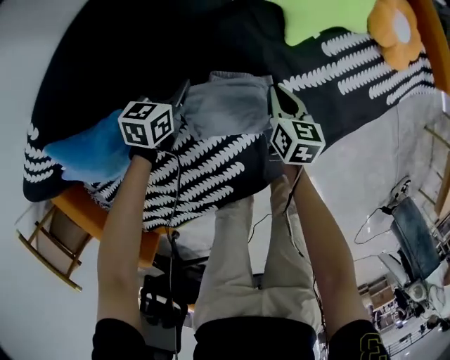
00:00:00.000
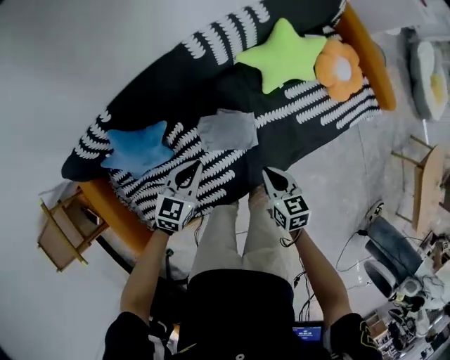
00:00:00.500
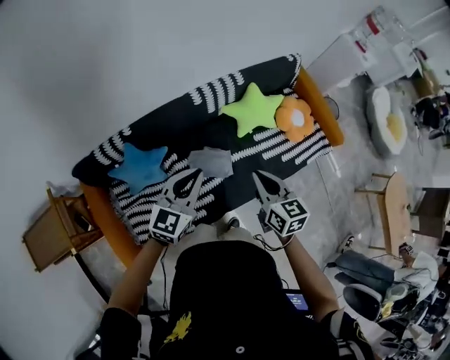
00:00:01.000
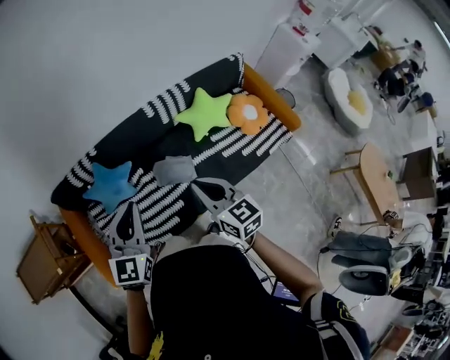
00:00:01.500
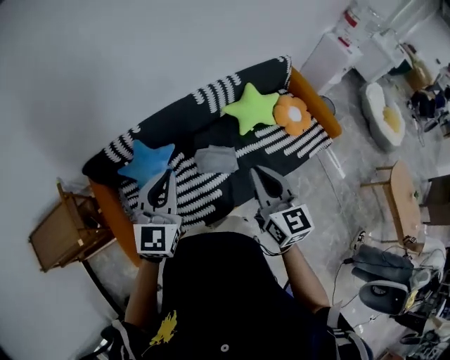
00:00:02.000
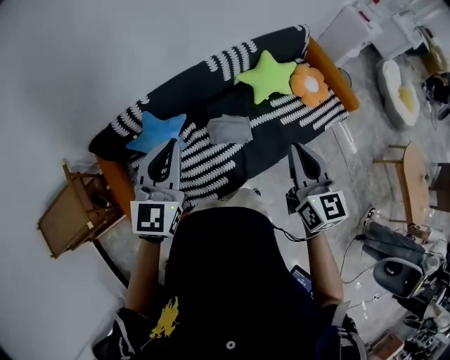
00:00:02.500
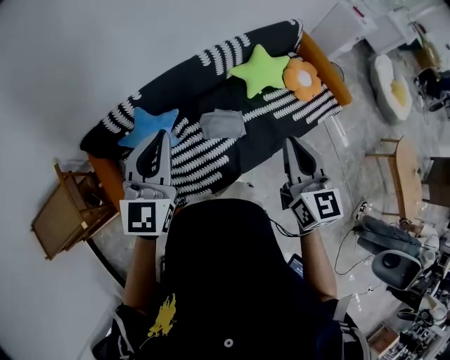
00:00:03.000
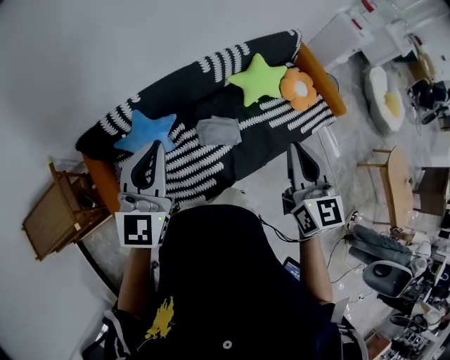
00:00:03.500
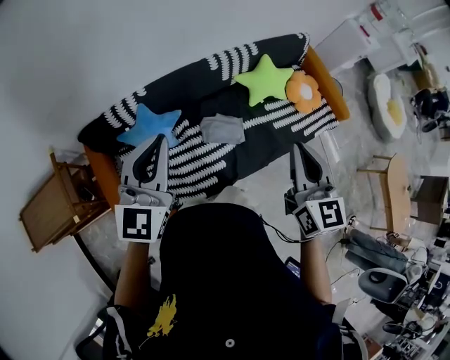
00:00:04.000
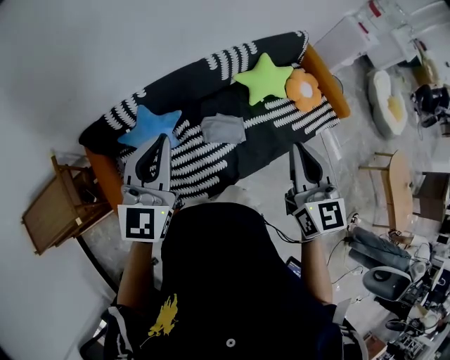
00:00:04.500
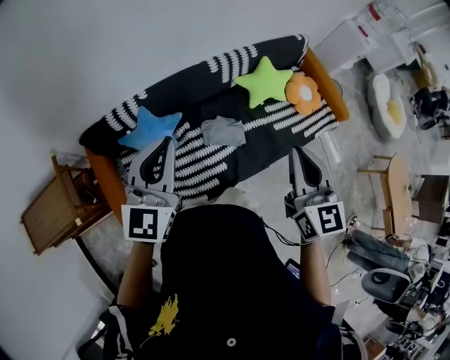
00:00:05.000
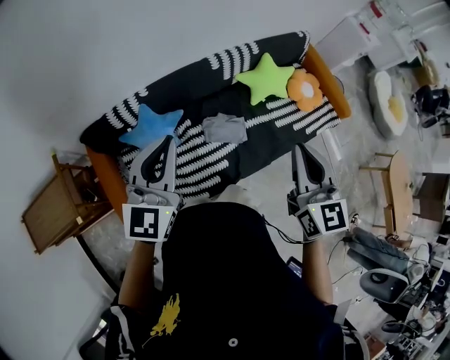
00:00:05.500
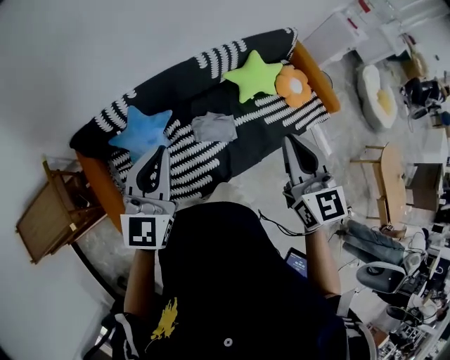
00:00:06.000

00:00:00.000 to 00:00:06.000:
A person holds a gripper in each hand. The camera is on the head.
00:00:00.000 to 00:00:02.000: The grippers both shift upward by about 80 cm. The right gripper tilts its fingers roughly 40 degrees upward. Meanwhile the left gripper tips its fingers upward by some 40 degrees.
00:00:02.000 to 00:00:04.000: The left gripper travels to the left by roughly 10 cm.
00:00:04.000 to 00:00:06.000: The grippers stay close to where they were, moving slightly.

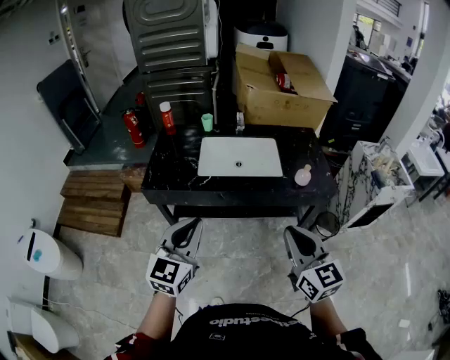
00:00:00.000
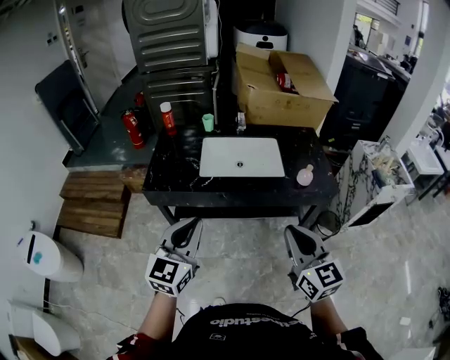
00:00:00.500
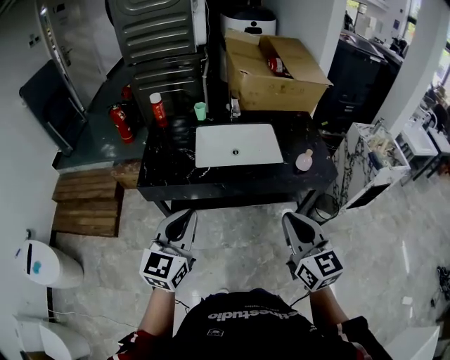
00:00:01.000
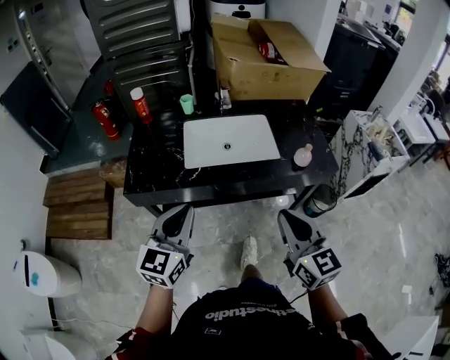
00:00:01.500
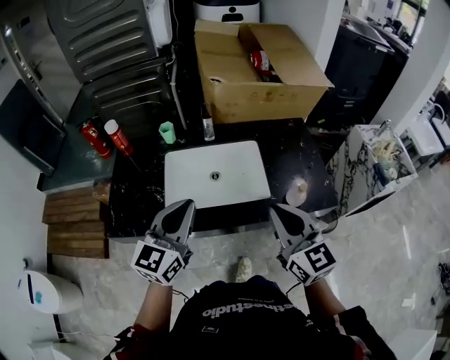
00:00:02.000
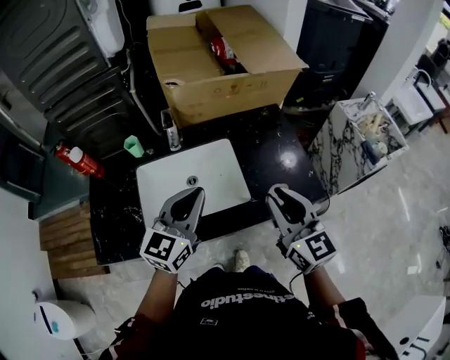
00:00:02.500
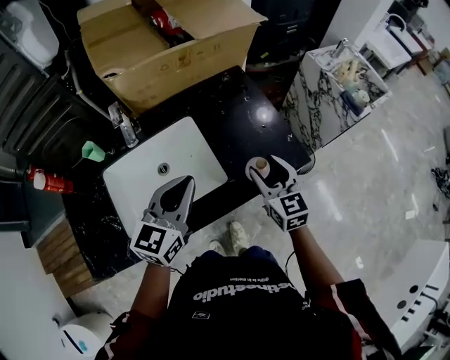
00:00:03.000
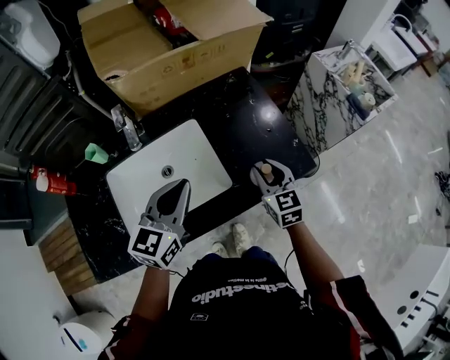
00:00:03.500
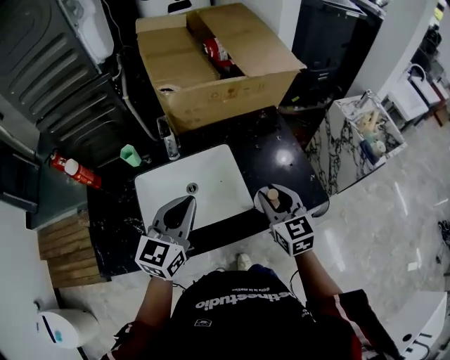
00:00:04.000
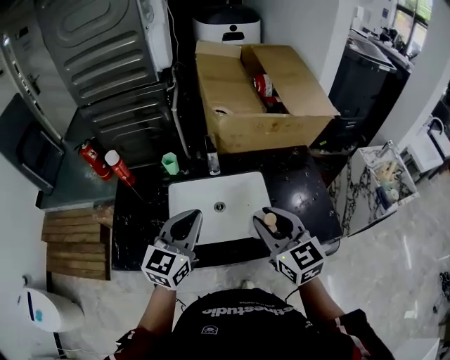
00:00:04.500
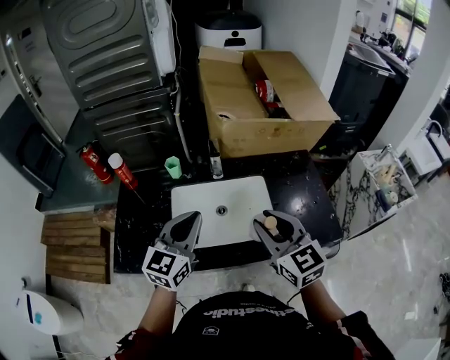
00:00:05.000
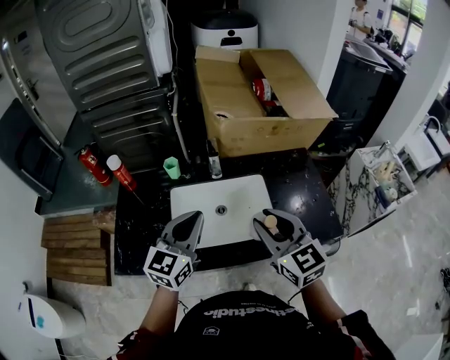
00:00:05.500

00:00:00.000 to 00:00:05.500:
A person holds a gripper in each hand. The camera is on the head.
00:00:00.000 to 00:00:02.000: The grippers both shift forward by roughly 30 cm.
00:00:02.000 to 00:00:03.500: The right gripper goes roughly 30 cm downward, forward and to the right, turns by approximately 30 degrees, and opens its fingers. Meanwhile the left gripper moves forward, to the right and downward, approximately 25 cm, and turns by roughly 20 degrees.
00:00:03.500 to 00:00:05.500: The left gripper travels to the left and upward by some 20 cm, and changes its angle by approximately 20 degrees, while the right gripper goes about 30 cm to the left and upward, and changes its angle by roughly 30 degrees.

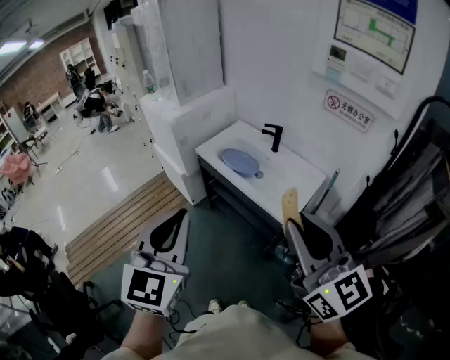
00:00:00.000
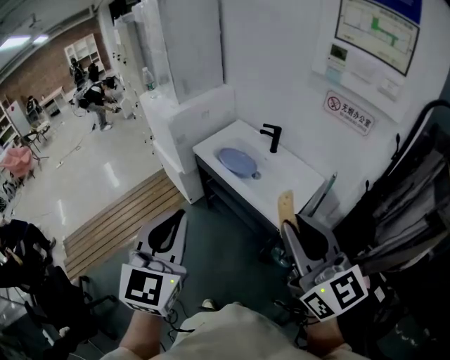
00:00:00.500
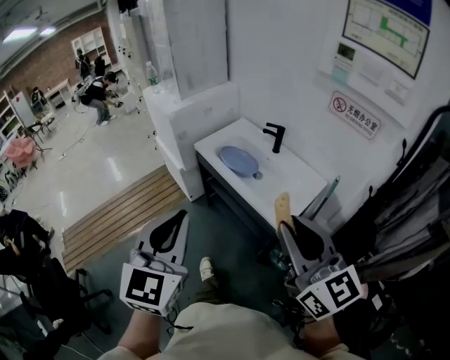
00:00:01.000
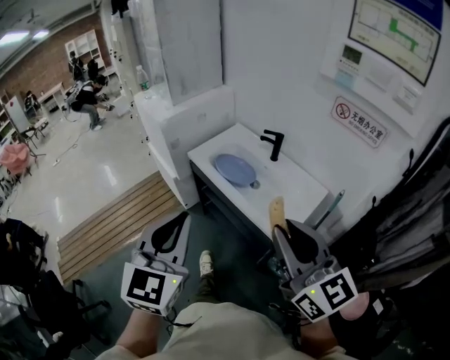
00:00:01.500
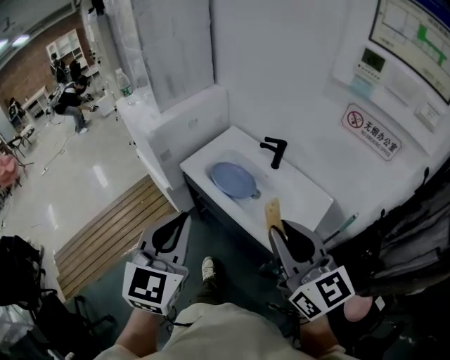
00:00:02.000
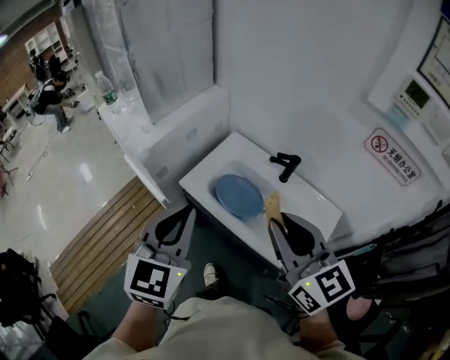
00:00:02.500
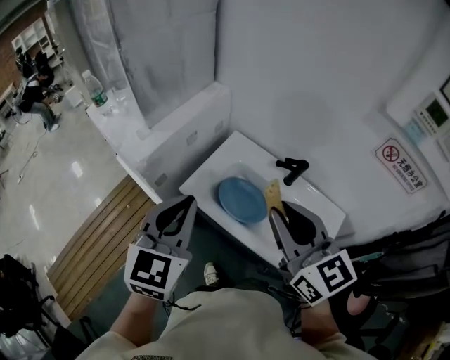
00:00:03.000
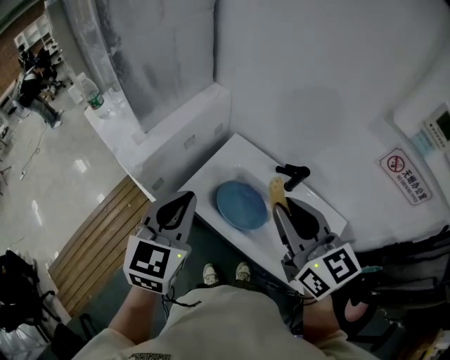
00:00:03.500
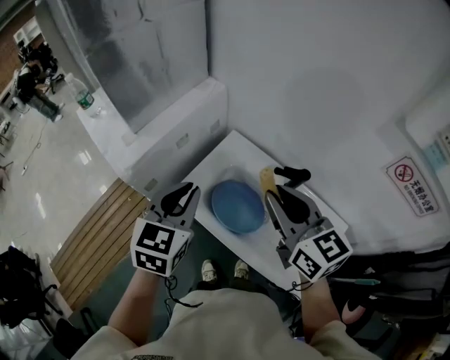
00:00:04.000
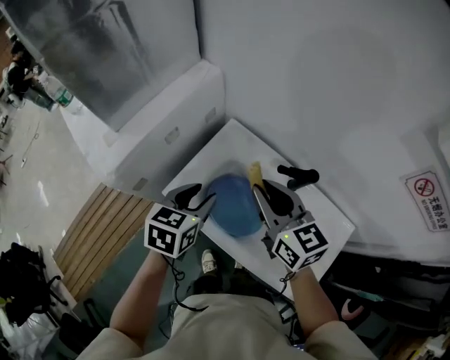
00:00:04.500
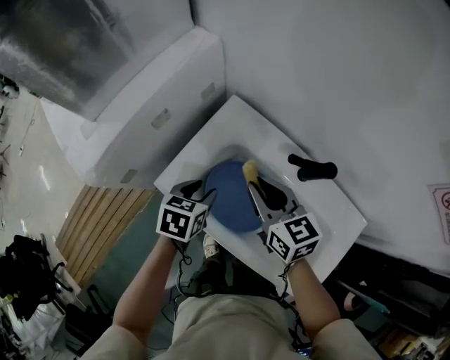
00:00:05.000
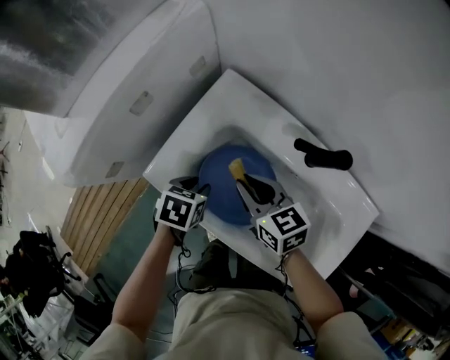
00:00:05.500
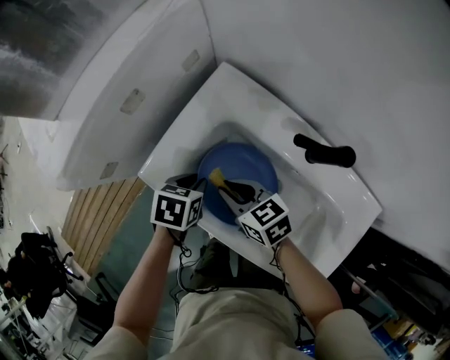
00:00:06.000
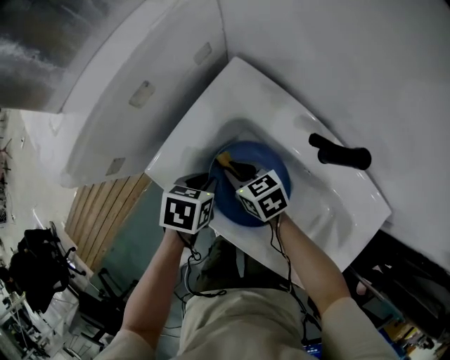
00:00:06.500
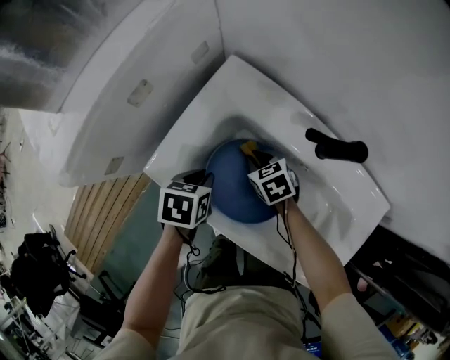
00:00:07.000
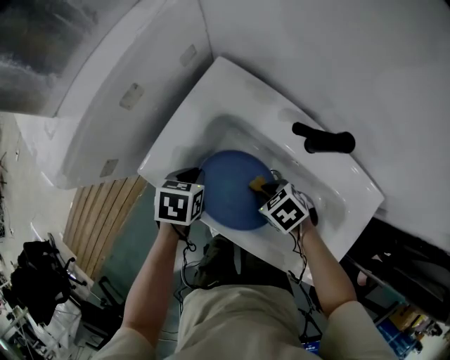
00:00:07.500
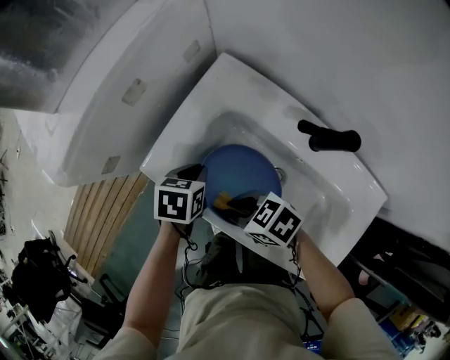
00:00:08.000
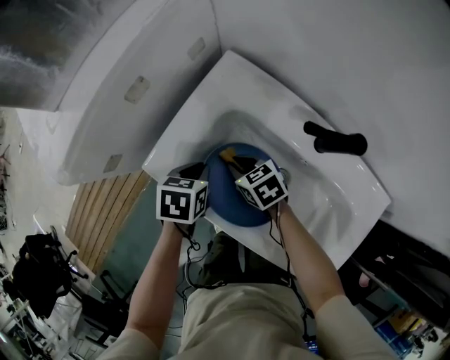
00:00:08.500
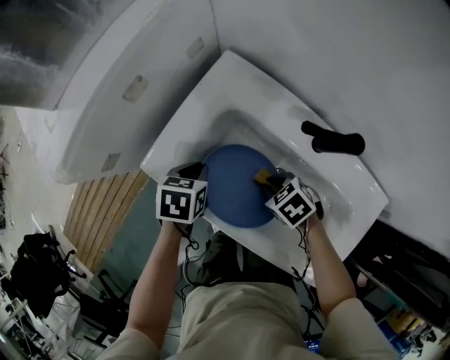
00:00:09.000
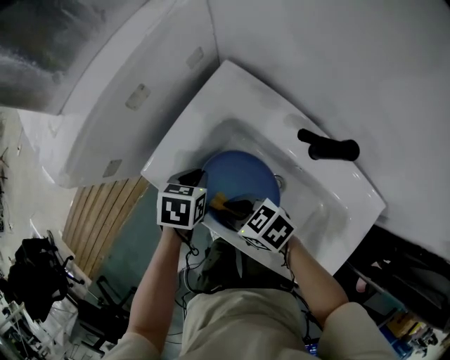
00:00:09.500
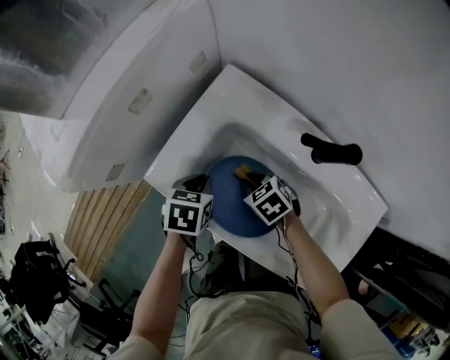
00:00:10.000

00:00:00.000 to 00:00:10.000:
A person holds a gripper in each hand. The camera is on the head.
00:00:00.000 to 00:00:02.000: The two grippers go roughly 25 cm forward.
00:00:02.000 to 00:00:04.000: The two grippers go some 35 cm forward.
00:00:04.000 to 00:00:06.000: The grippers both shift downward by about 35 cm. The left gripper tips its fingers downward by roughly 40 degrees, and opens and closes again. The right gripper rotates some 40 degrees.
00:00:06.000 to 00:00:08.000: The right gripper moves some 10 cm downward and comes back, and rotates about 30 degrees.
00:00:08.000 to 00:00:10.000: The right gripper moves up and down over some 10 cm, changing direction 2 times, and swivels about 30 degrees.

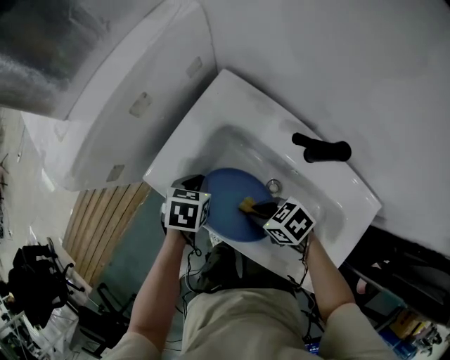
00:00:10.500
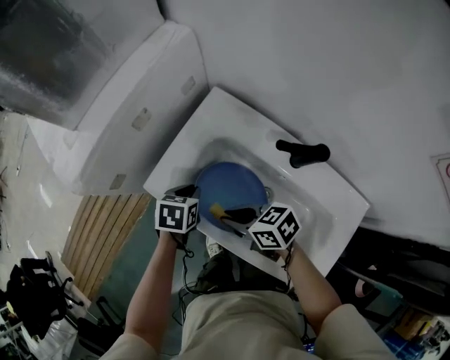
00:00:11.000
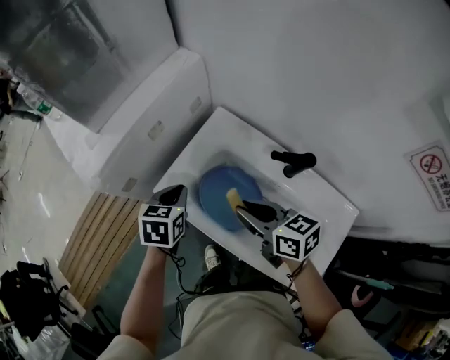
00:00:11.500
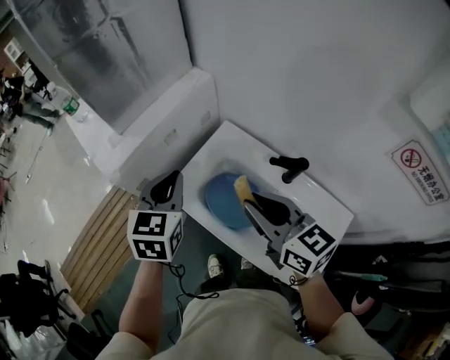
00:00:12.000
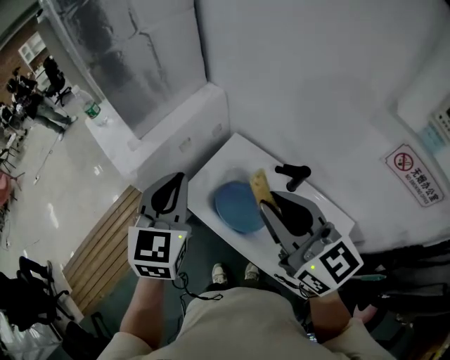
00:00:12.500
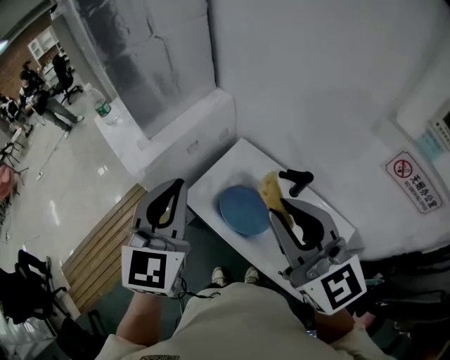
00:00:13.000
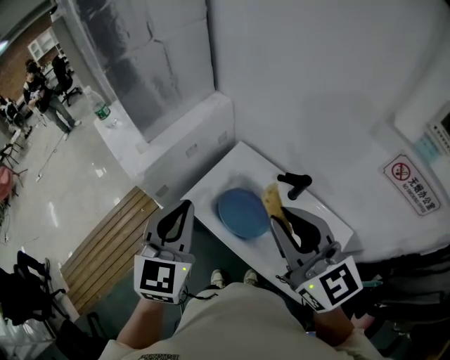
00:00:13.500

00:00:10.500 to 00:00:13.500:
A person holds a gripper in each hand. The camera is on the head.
00:00:10.500 to 00:00:12.000: Both grippers move upward, roughly 30 cm. The left gripper points its fingers about 30 degrees further upward, while the right gripper points its fingers approximately 40 degrees further upward.
00:00:12.000 to 00:00:13.500: The two grippers go some 15 cm upward and backward. The right gripper changes its angle by some 20 degrees.

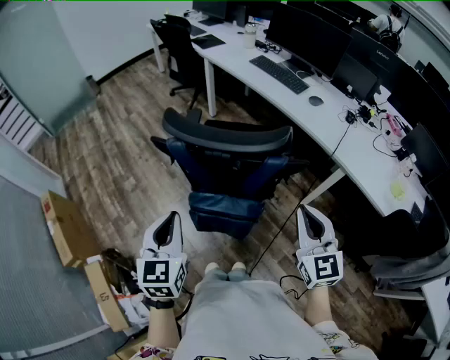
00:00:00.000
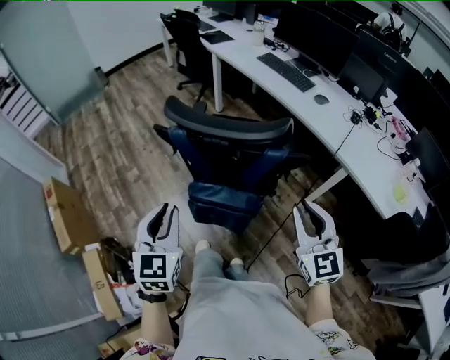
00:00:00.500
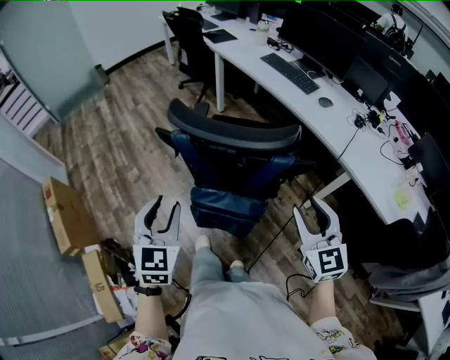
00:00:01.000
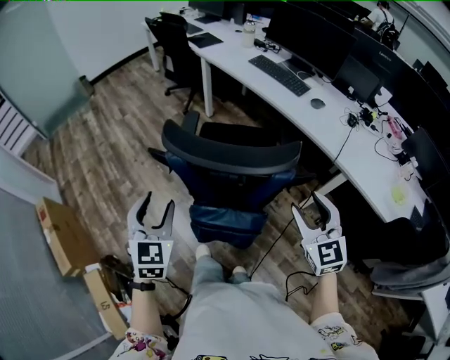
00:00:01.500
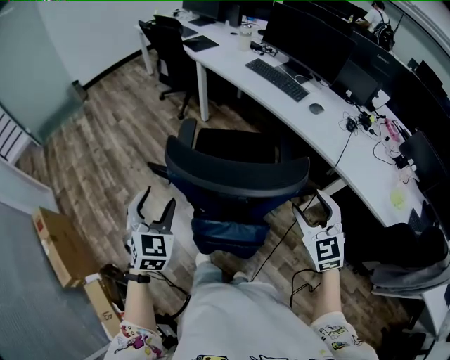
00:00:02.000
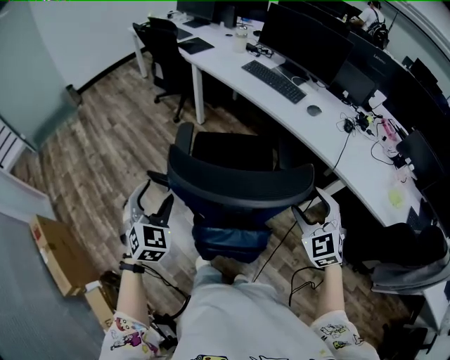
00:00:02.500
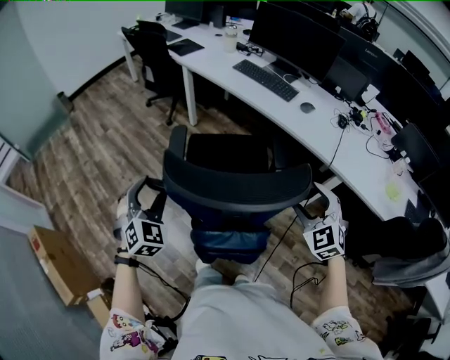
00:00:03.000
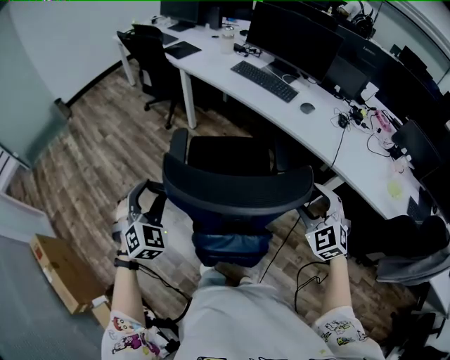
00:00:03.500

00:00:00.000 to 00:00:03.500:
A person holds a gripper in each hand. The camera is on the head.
00:00:00.000 to 00:00:02.000: The two grippers go some 15 cm forward. The right gripper opens up. Meanwhile the left gripper turns by some 30 degrees, and opens its fingers.
00:00:02.000 to 00:00:03.500: The right gripper moves approximately 5 cm; the left gripper travels forward by roughly 10 cm, and changes its angle by approximately 20 degrees.
